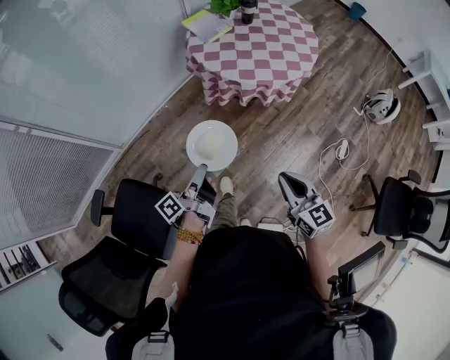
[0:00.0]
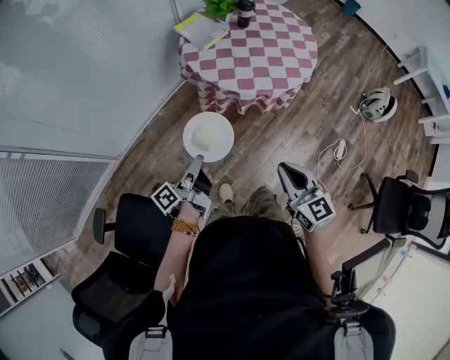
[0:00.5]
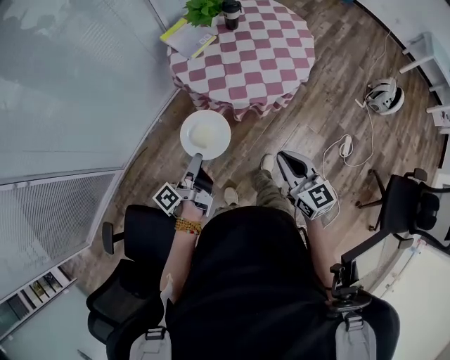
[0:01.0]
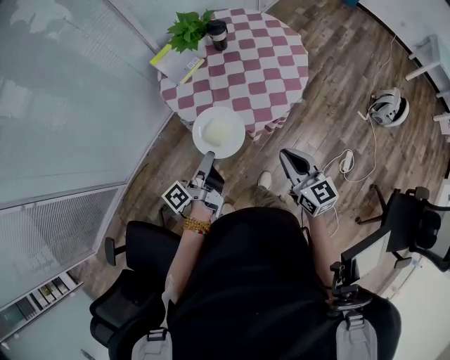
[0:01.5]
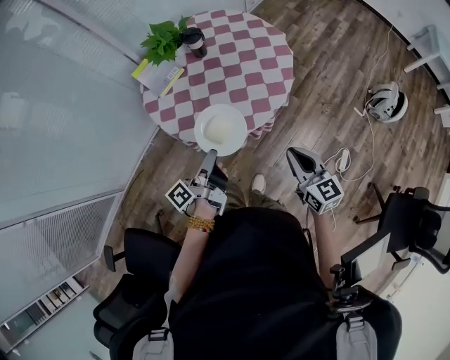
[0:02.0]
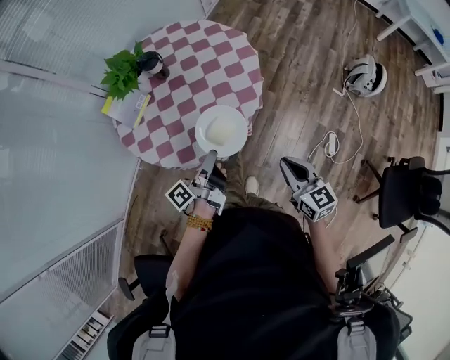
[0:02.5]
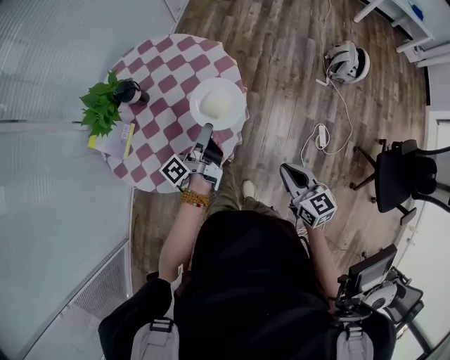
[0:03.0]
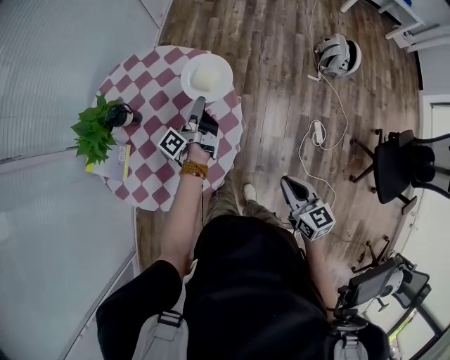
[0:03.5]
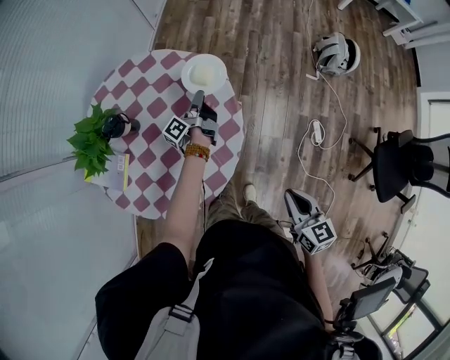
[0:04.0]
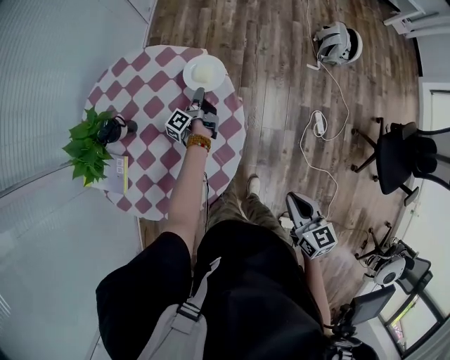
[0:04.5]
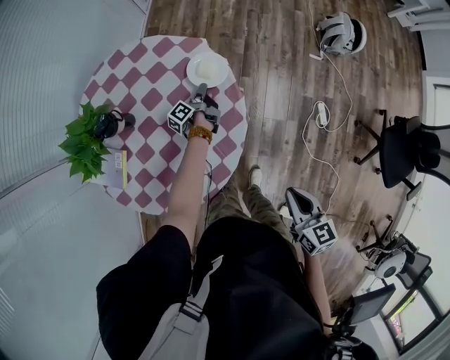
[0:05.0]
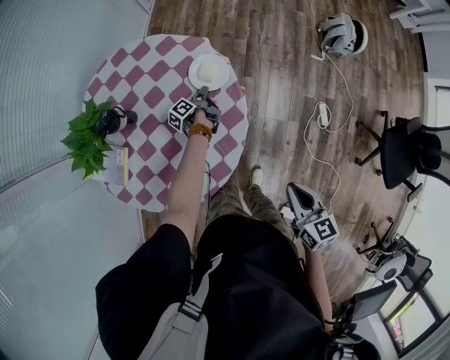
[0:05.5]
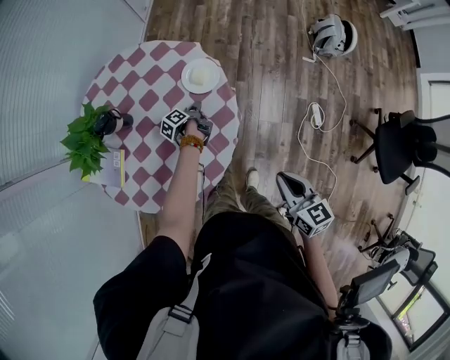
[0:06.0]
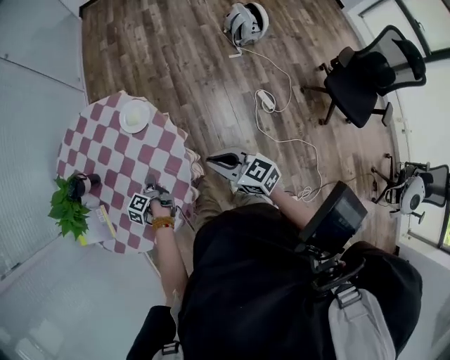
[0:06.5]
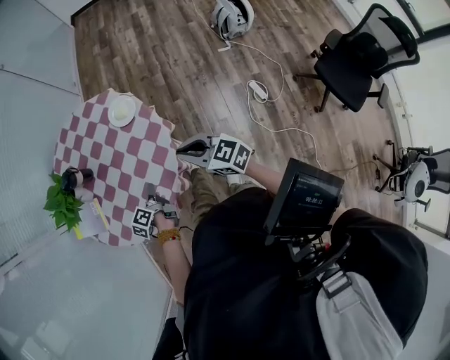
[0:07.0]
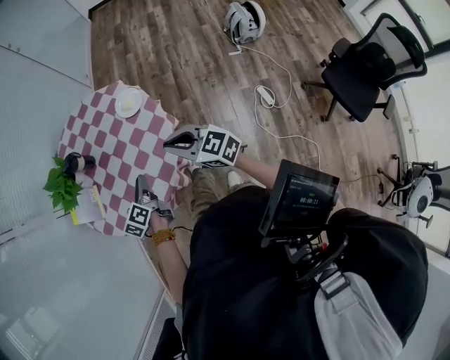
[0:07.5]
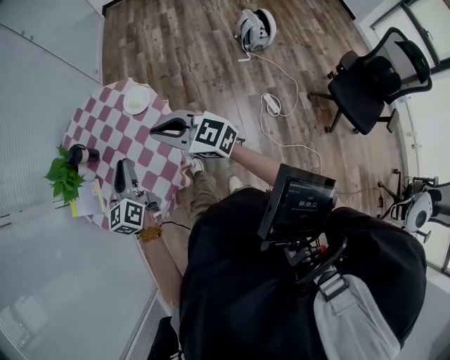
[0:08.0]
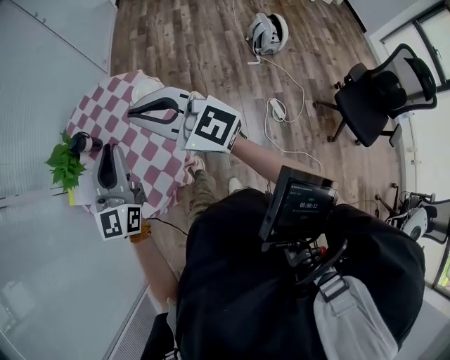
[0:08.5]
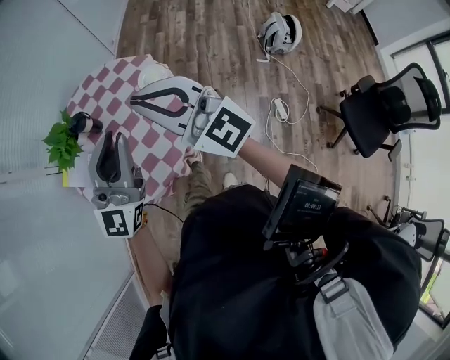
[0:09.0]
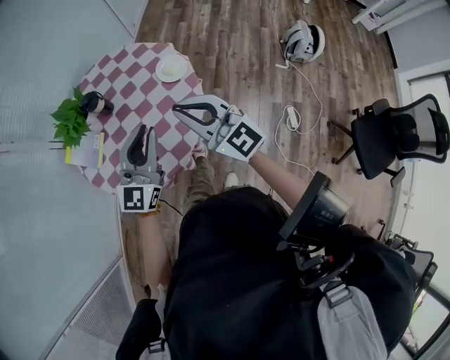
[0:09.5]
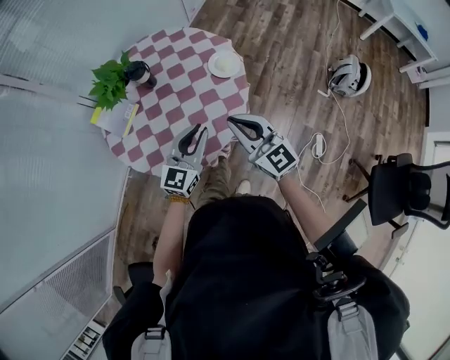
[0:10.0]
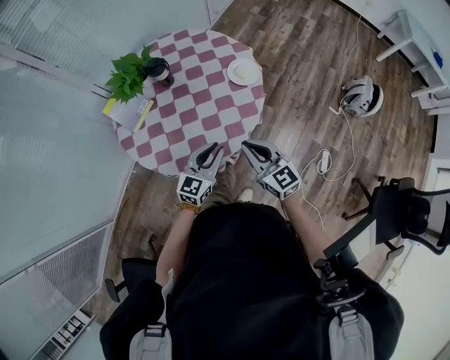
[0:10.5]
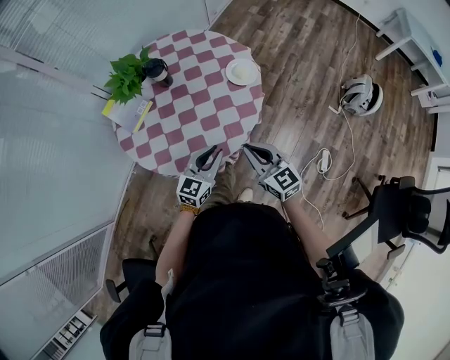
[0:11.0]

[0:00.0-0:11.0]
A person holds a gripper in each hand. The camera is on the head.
0:00.0 to 0:02.0: The pair of grippers is taken forward and to the right, roughly 50 cm.
0:02.0 to 0:03.5: The left gripper moves forward and to the right, some 40 cm, and changes its angle by some 20 degrees, while the right gripper shifts some 10 cm to the right and forward, and swivels about 30 degrees.
0:03.5 to 0:05.5: The left gripper is displaced downward by roughly 25 cm, and tilts its fingers about 30 degrees downward.
0:05.5 to 0:07.5: The left gripper shifts about 40 cm backward and upward, and rolls clockwise, seen from behind, by roughly 40 degrees. The right gripper goes roughly 10 cm upward and to the left, and rotates some 40 degrees.
0:07.5 to 0:09.0: Both grippers move upward, some 25 cm. The left gripper points its fingers roughly 40 degrees further upward. Meanwhile the right gripper swivels approximately 40 degrees.
0:09.0 to 0:11.0: The two grippers go roughly 30 cm downward. The right gripper changes its angle by roughly 40 degrees. The left gripper angles its fingers downward, by about 30 degrees.

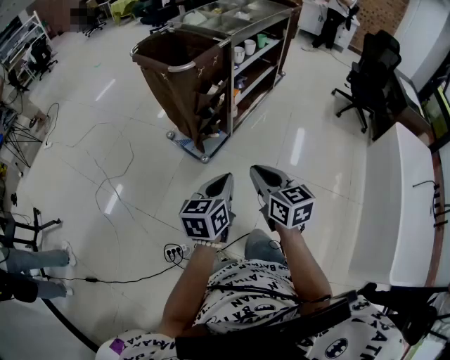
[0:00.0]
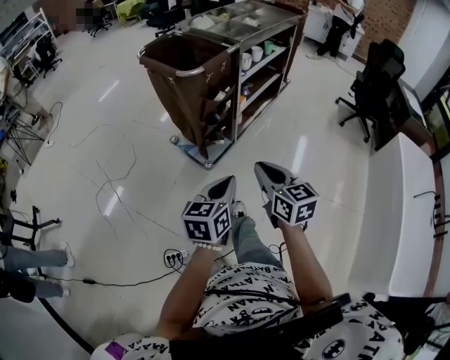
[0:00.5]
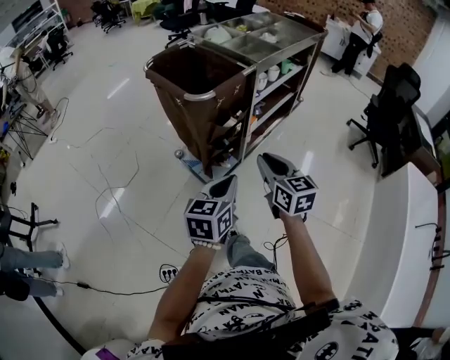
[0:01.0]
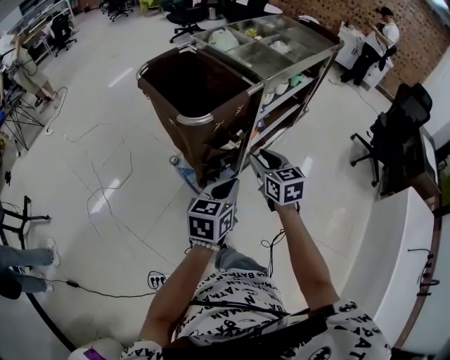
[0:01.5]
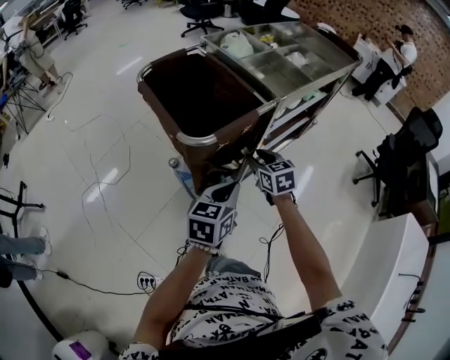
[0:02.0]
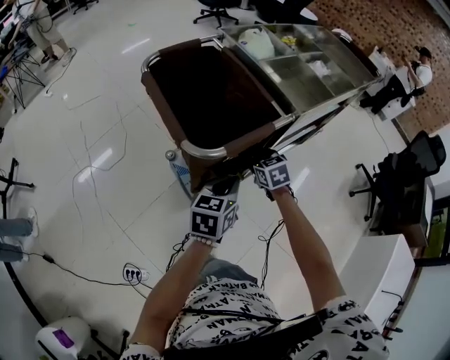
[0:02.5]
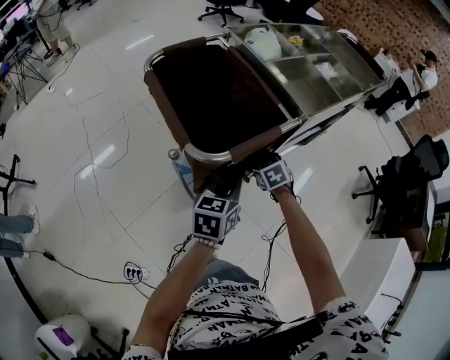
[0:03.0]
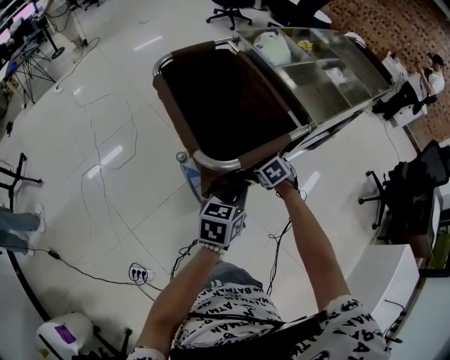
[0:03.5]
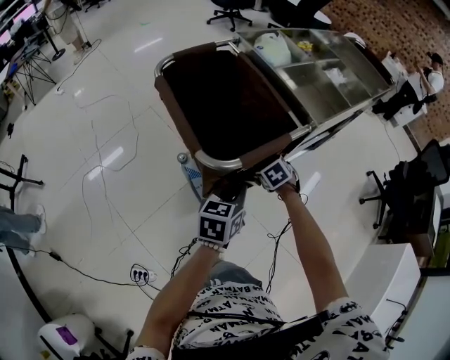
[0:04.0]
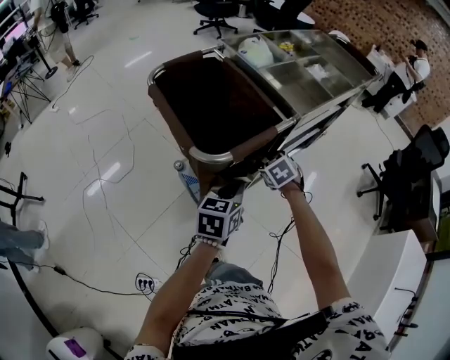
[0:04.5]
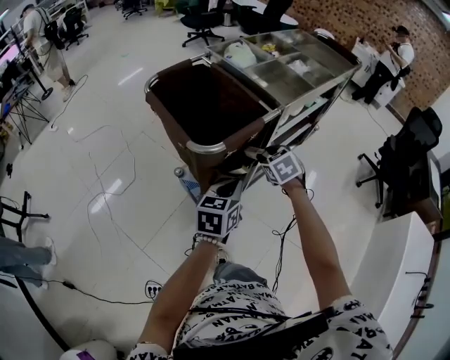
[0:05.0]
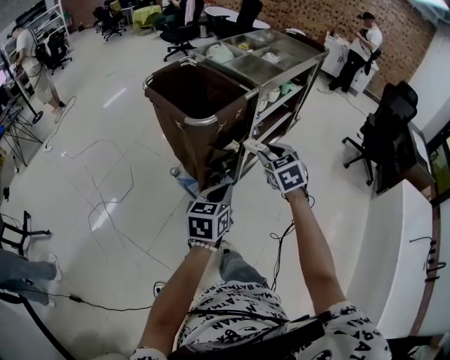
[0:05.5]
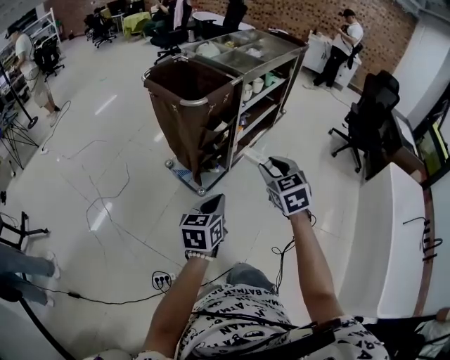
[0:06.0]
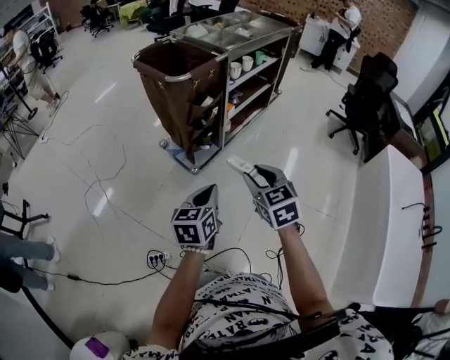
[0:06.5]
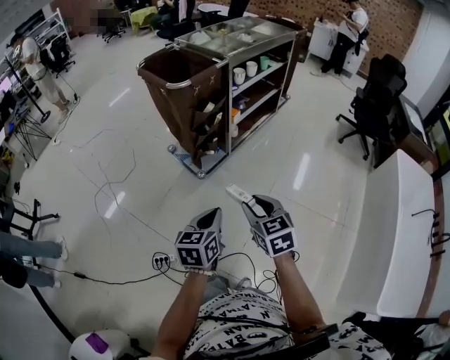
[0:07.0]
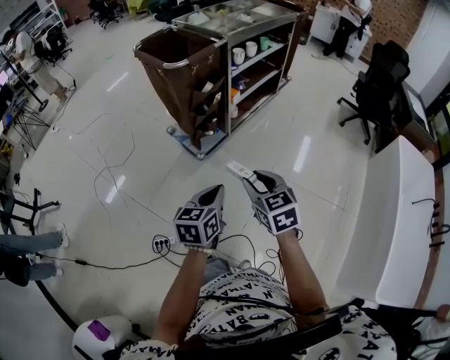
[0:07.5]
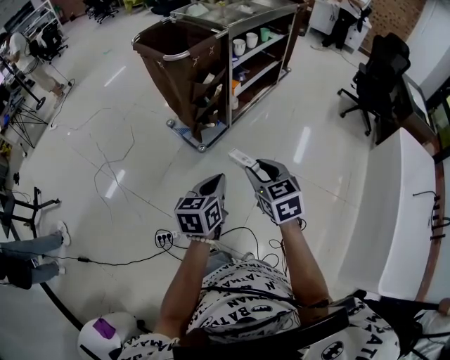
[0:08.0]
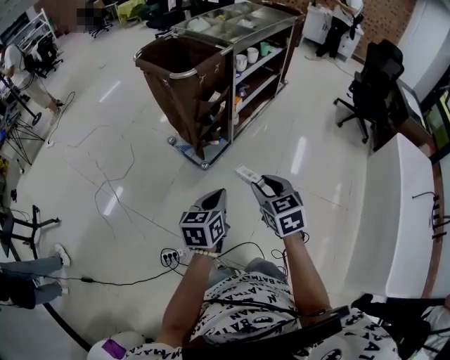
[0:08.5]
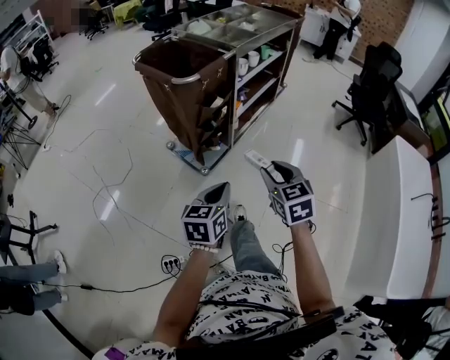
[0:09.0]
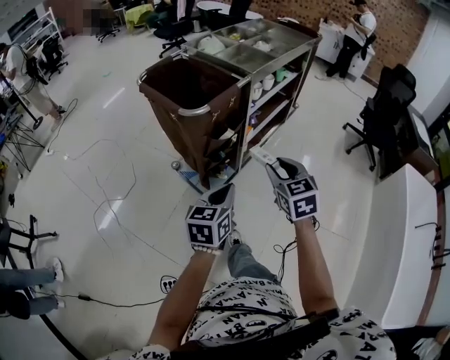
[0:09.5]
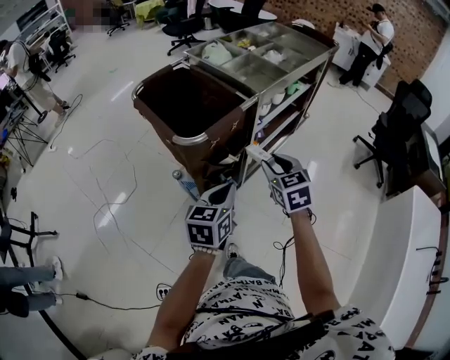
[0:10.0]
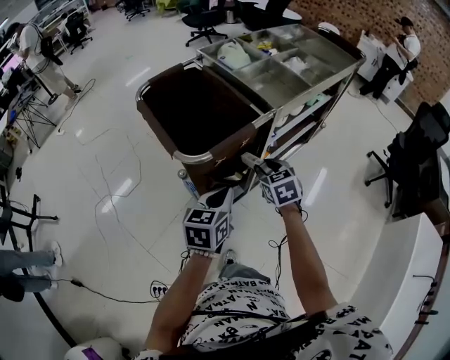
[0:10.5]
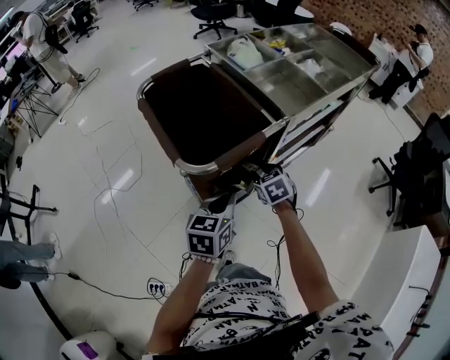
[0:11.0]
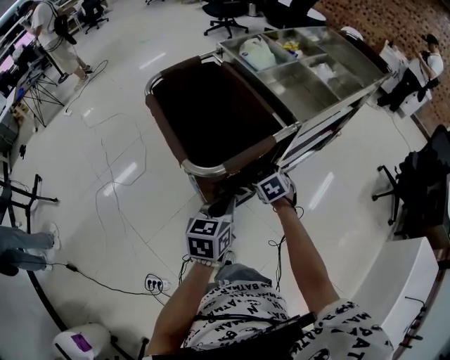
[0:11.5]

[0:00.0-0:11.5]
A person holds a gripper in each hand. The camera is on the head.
0:00.0 to 0:02.0: Both grippers travel together forward, roughly 40 cm. The right gripper changes its angle by about 30 degrees, and opens up.
0:02.0 to 0:04.0: The left gripper shifts about 10 cm forward. Meanwhile the right gripper shifts some 15 cm downward and forward, and swivels approximately 40 degrees.
0:04.0 to 0:06.0: The left gripper is displaced backward by roughly 35 cm; the right gripper moves backward and upward, approximately 50 cm, and angles its fingers upward, by approximately 30 degrees.
0:06.0 to 0:07.5: The left gripper travels backward and to the right by some 15 cm. Meanwhile the right gripper travels backward by about 20 cm.
0:07.5 to 0:09.5: Both grippers travel together forward, approximately 25 cm.
0:09.5 to 0:11.5: The right gripper shifts roughly 40 cm forward and downward, and rotates roughly 30 degrees. The left gripper is displaced forward by approximately 25 cm.

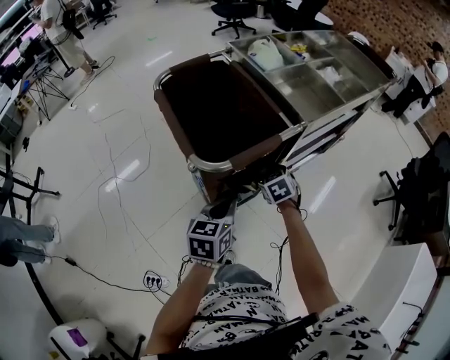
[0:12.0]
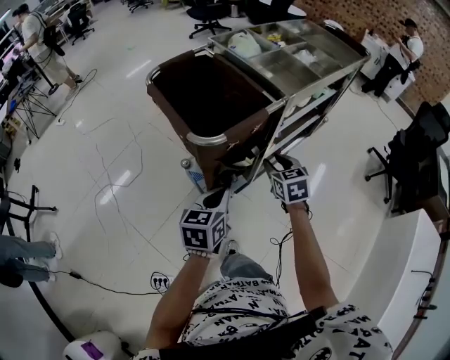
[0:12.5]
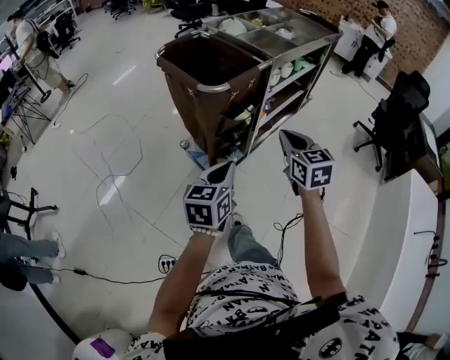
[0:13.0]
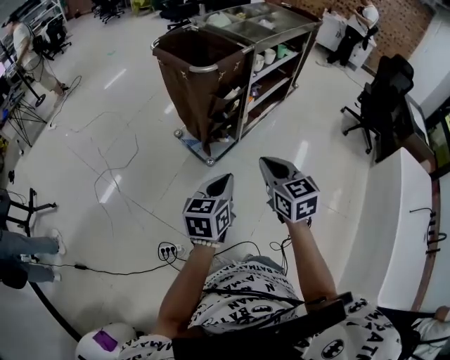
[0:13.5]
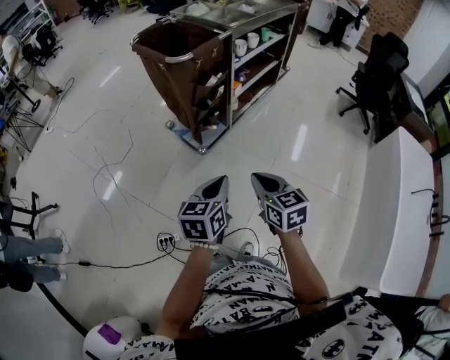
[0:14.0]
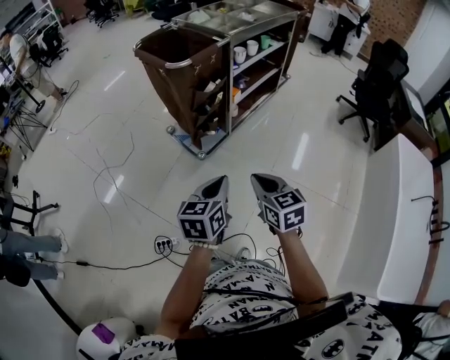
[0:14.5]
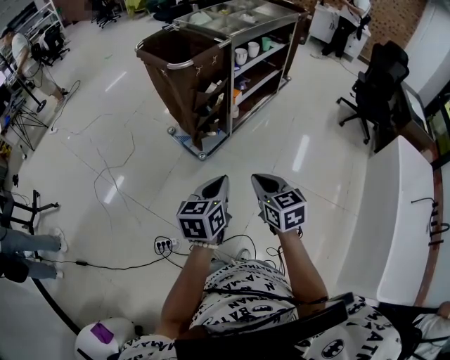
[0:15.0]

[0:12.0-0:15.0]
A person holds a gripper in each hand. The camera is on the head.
0:12.0 to 0:13.5: The left gripper is displaced backward by roughly 35 cm. Meanwhile the right gripper is displaced backward and upward by some 50 cm, swivels some 30 degrees, and closes.
0:13.5 to 0:15.0: The right gripper travels backward, to the right and downward by some 10 cm. The left gripper is displaced to the right and backward by some 10 cm.

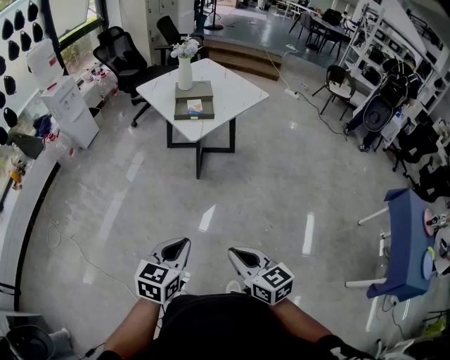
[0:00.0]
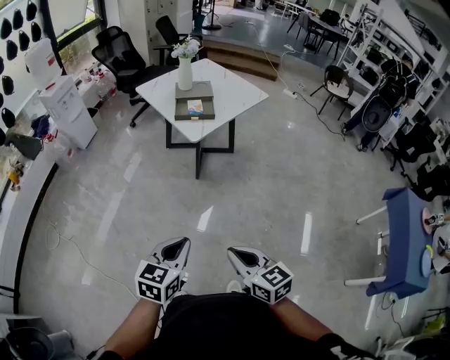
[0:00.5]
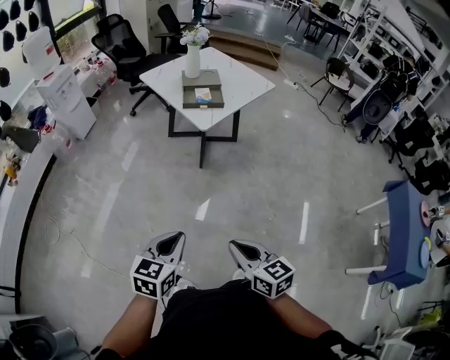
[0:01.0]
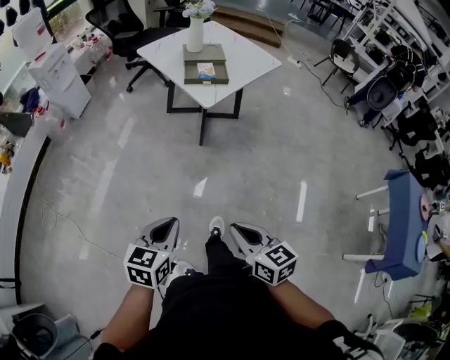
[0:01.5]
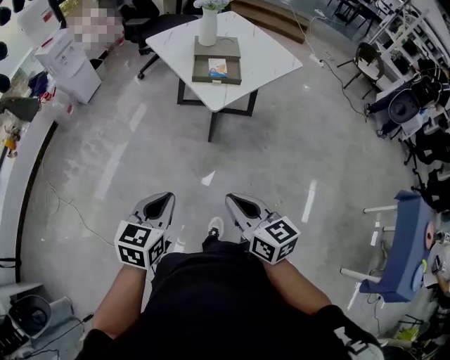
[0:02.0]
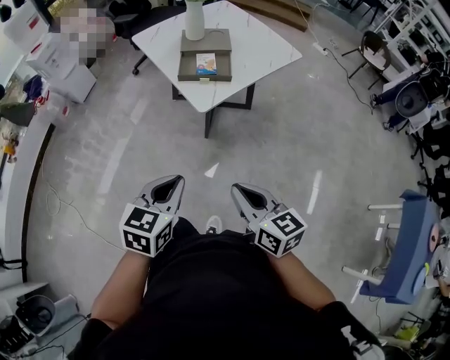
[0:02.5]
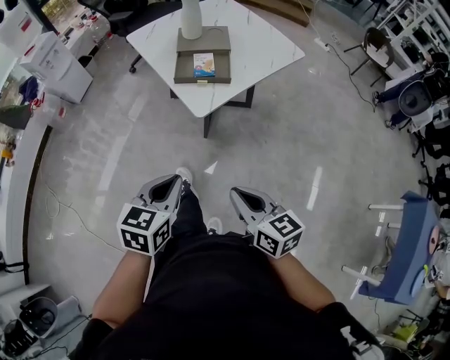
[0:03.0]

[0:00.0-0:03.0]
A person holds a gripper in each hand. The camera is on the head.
0:00.0 to 0:01.5: Both grippers move to the left, roughly 10 cm.
0:01.5 to 0:03.0: The two grippers go roughly 30 cm forward and to the right.
